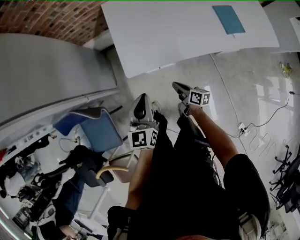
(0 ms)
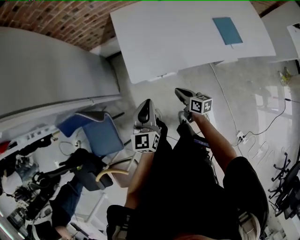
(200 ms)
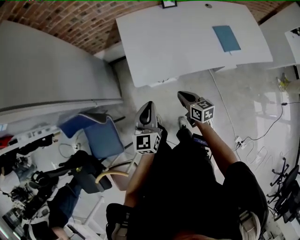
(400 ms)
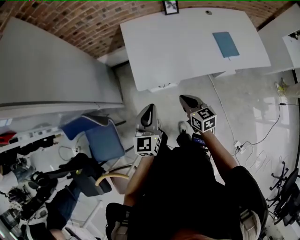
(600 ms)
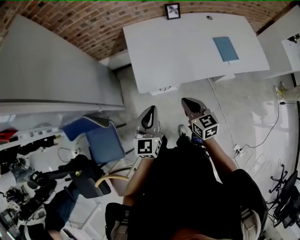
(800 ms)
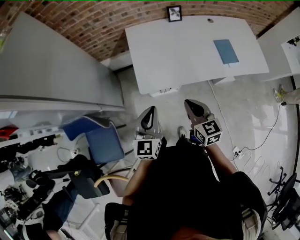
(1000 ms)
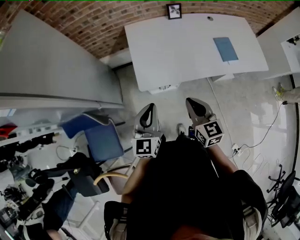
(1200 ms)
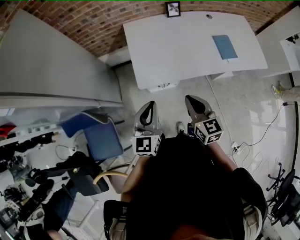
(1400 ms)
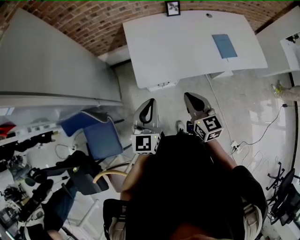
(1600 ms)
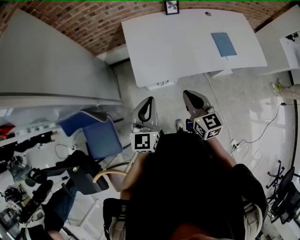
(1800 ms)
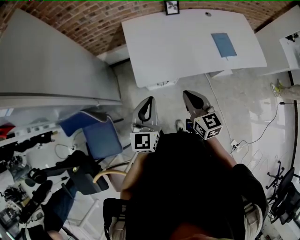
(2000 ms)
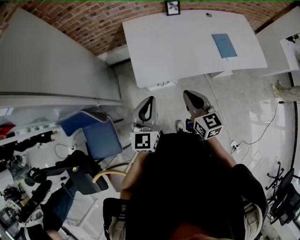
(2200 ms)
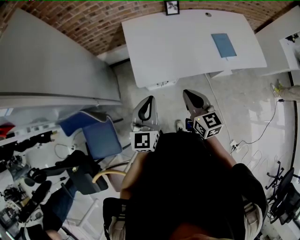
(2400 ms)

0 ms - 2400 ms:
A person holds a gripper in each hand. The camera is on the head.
0 ms - 1200 ms: The right gripper is displaced upward by approximately 30 cm, and twists about 50 degrees counterclockwise, seen from behind, while the left gripper goes approximately 10 cm upward.
1200 ms - 2400 ms: The grippers make only small movements.

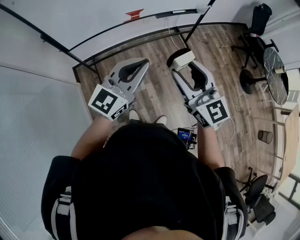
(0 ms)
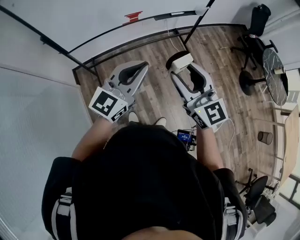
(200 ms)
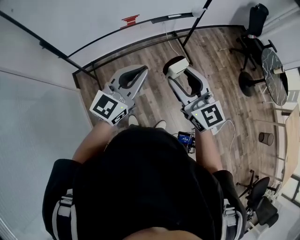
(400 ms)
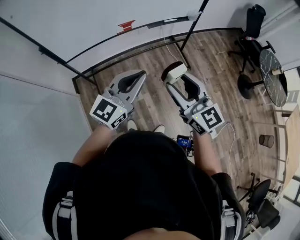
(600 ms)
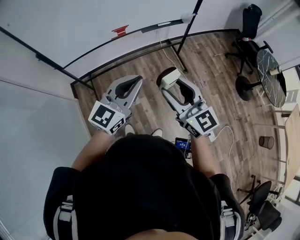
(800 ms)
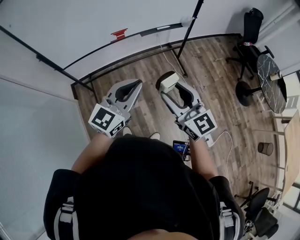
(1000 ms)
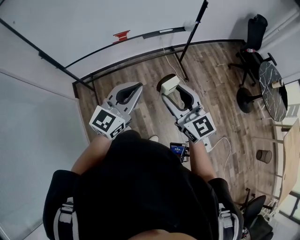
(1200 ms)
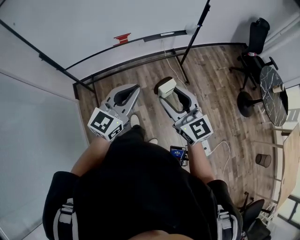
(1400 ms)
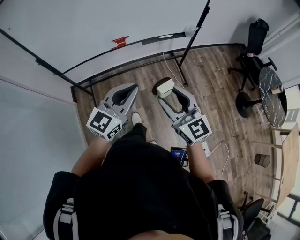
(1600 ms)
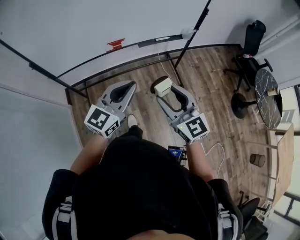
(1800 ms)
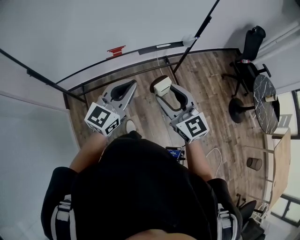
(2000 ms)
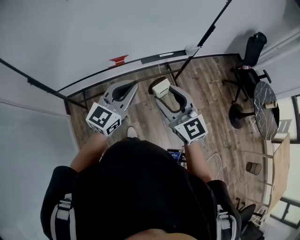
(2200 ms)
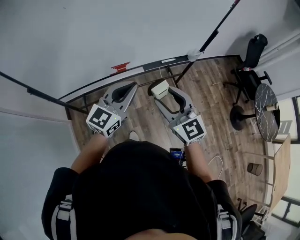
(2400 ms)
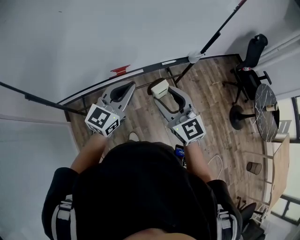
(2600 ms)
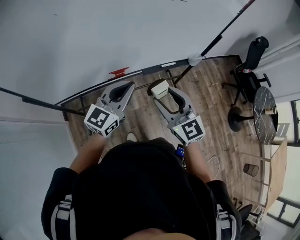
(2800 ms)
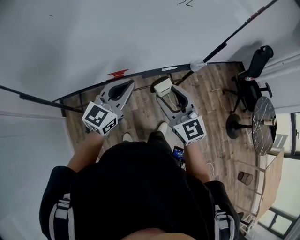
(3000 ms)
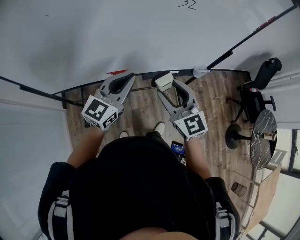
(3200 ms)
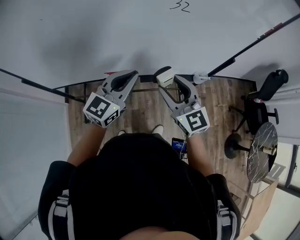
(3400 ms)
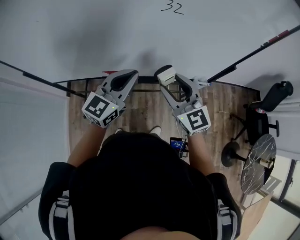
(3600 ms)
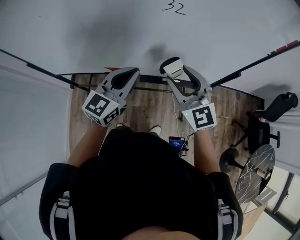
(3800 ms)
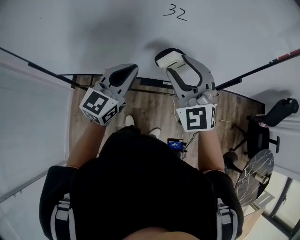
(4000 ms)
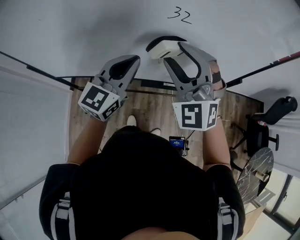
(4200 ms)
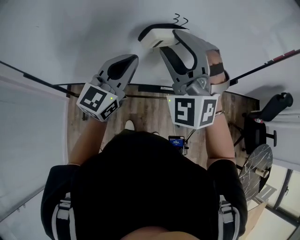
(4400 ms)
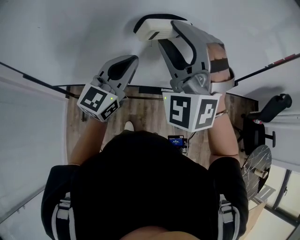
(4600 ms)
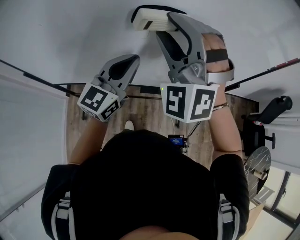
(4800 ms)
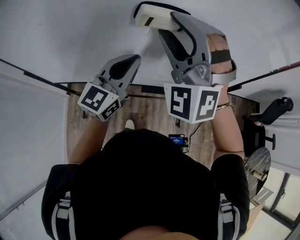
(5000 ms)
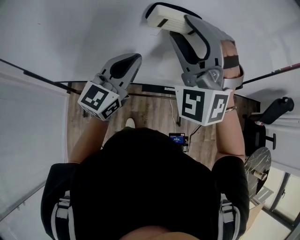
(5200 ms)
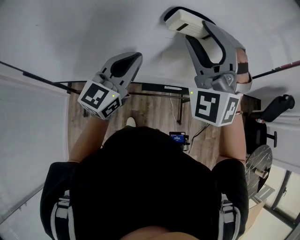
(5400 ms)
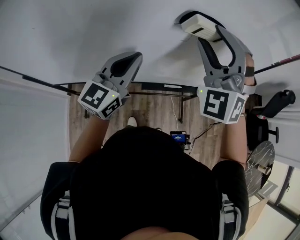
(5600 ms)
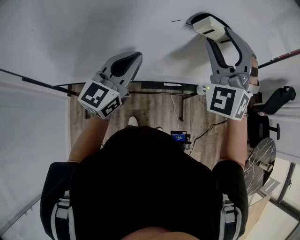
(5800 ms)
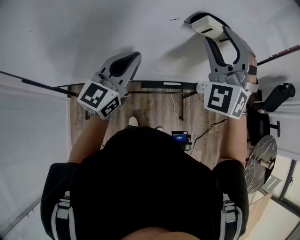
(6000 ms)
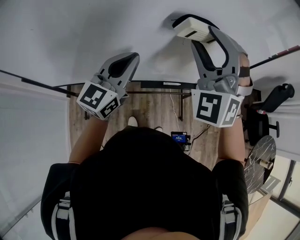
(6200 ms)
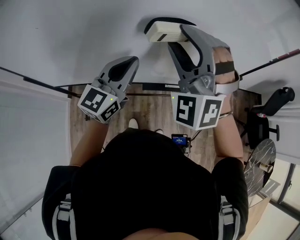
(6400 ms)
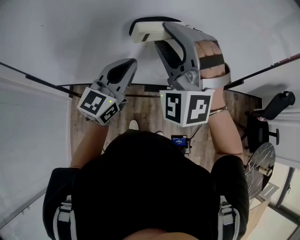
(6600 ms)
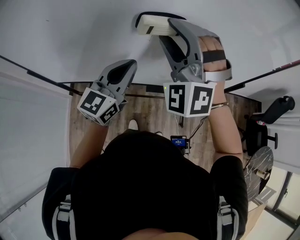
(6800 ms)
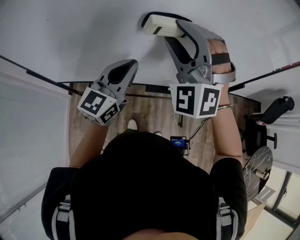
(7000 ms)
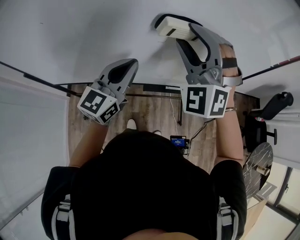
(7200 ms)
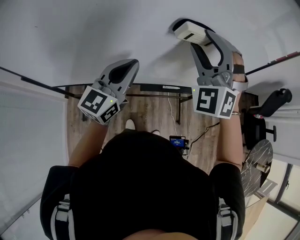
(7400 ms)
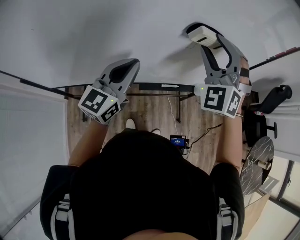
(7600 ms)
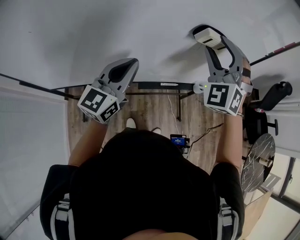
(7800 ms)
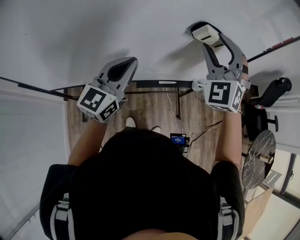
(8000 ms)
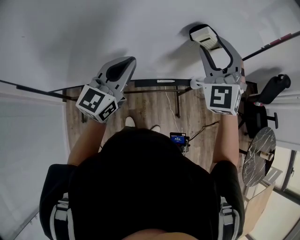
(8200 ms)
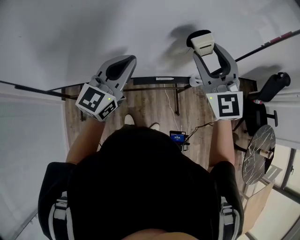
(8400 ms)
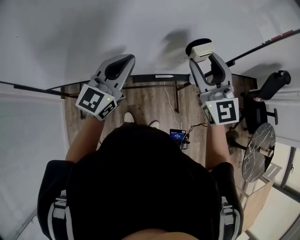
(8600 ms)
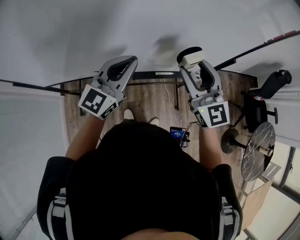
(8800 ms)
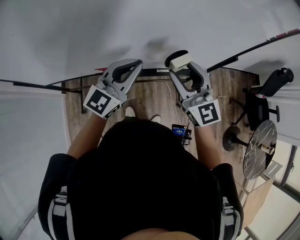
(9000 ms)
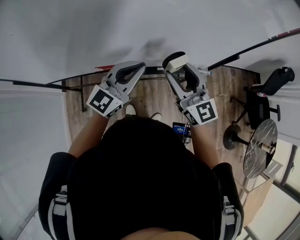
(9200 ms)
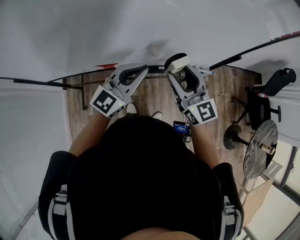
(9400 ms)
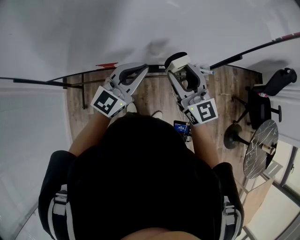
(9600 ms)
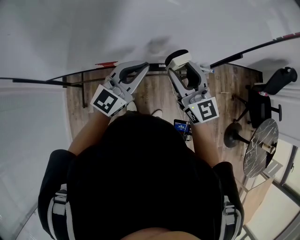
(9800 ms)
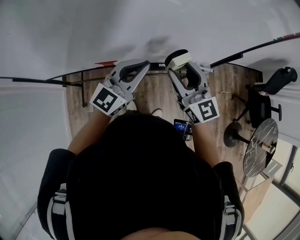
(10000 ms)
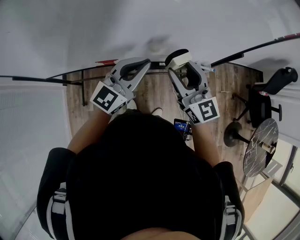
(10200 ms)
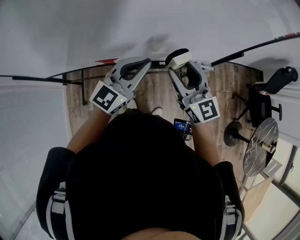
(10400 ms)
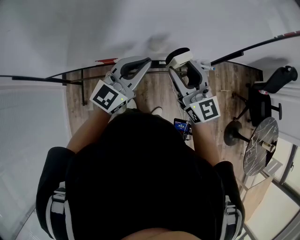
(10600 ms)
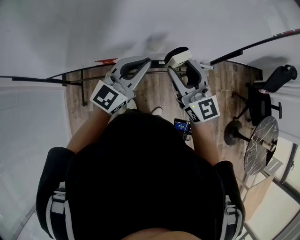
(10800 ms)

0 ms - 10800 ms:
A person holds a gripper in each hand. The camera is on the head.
0 ms - 1600 ms: The two grippers go roughly 10 cm to the right.
1600 ms - 3000 ms: Both grippers travel together forward, some 35 cm.
3000 ms - 4600 ms: The left gripper goes about 20 cm forward, to the right and upward, and rotates approximately 20 degrees. Meanwhile the right gripper shifts approximately 30 cm upward and forward, and rotates around the line of its fingers by some 60 degrees, counterclockwise from behind.
4600 ms - 6200 ms: The right gripper moves to the right, about 10 cm.
6200 ms - 7800 ms: The right gripper moves to the right, downward and forward, roughly 10 cm.
7800 ms - 9200 ms: The right gripper goes some 20 cm downward and backward, and twists roughly 60 degrees clockwise, seen from behind; the left gripper goes some 10 cm downward and to the right.
9200 ms - 10800 ms: The grippers move only a little.

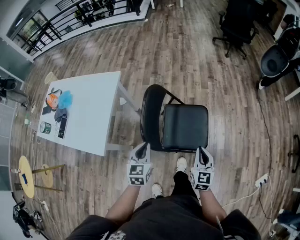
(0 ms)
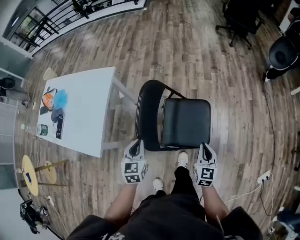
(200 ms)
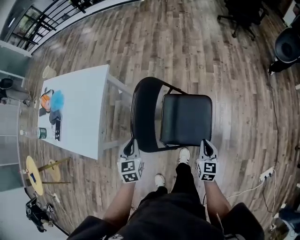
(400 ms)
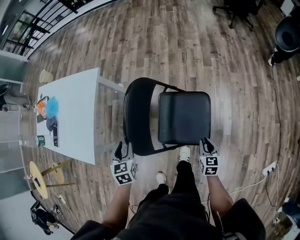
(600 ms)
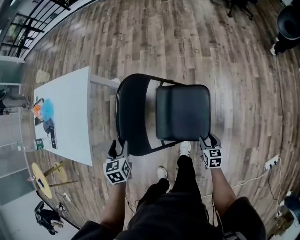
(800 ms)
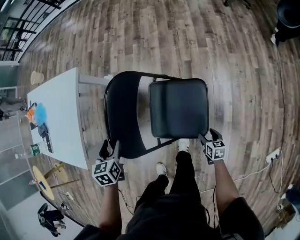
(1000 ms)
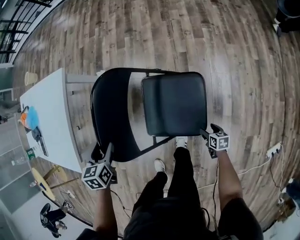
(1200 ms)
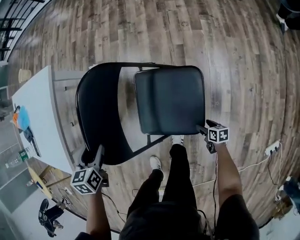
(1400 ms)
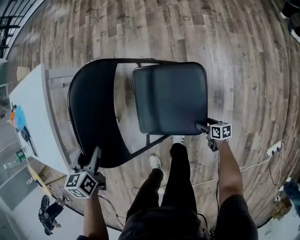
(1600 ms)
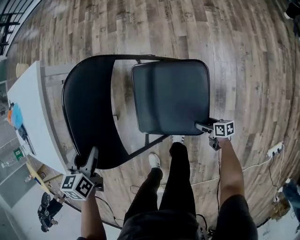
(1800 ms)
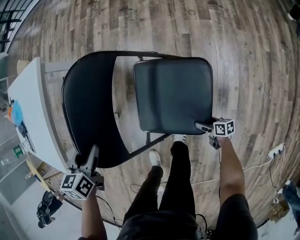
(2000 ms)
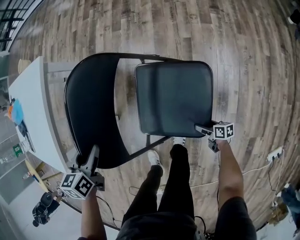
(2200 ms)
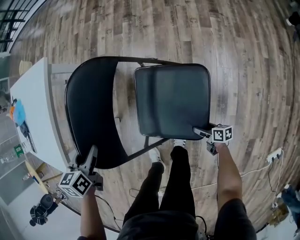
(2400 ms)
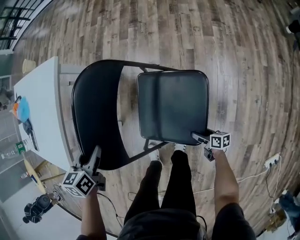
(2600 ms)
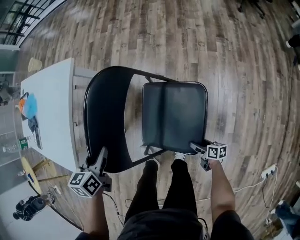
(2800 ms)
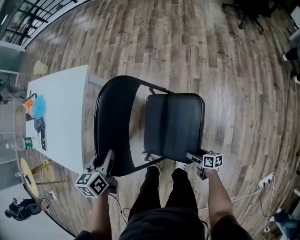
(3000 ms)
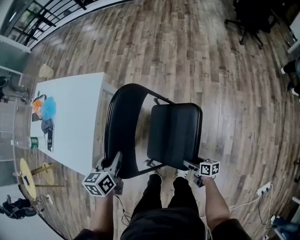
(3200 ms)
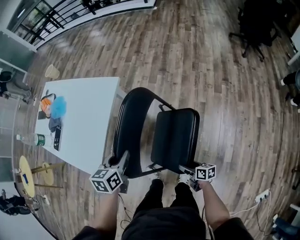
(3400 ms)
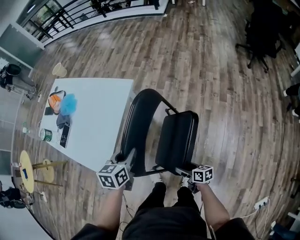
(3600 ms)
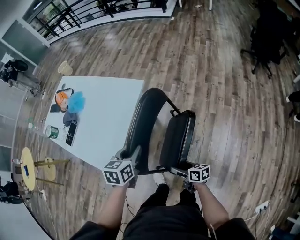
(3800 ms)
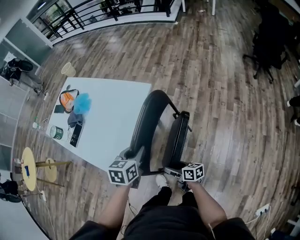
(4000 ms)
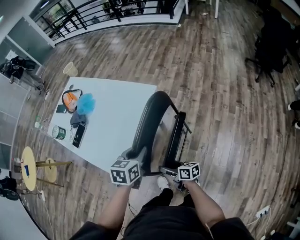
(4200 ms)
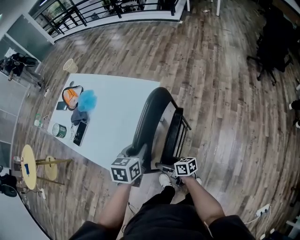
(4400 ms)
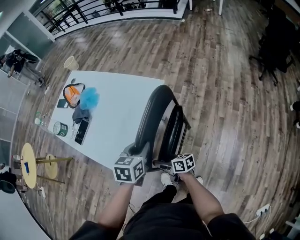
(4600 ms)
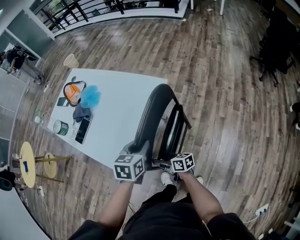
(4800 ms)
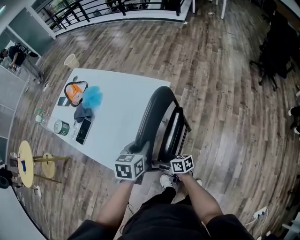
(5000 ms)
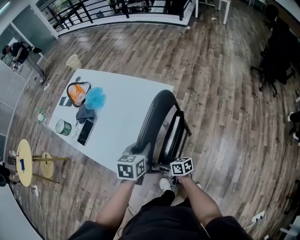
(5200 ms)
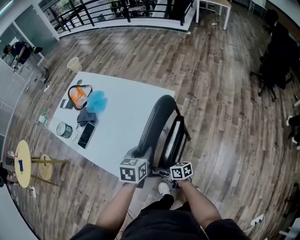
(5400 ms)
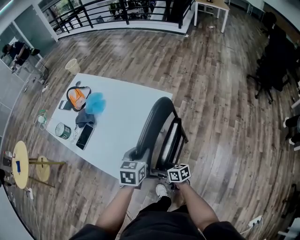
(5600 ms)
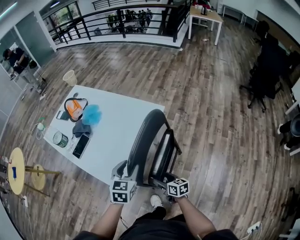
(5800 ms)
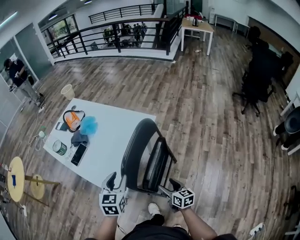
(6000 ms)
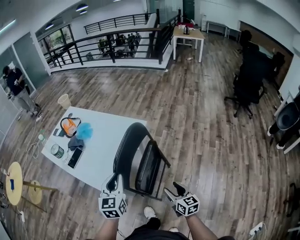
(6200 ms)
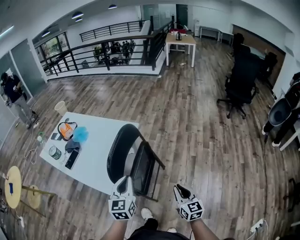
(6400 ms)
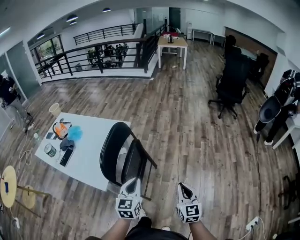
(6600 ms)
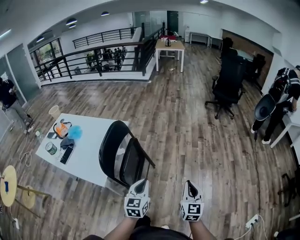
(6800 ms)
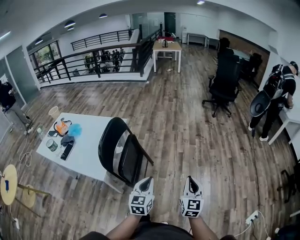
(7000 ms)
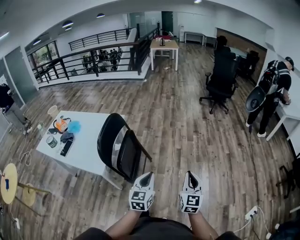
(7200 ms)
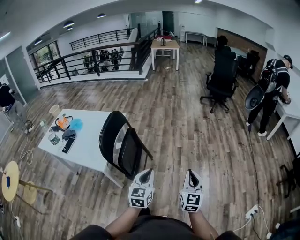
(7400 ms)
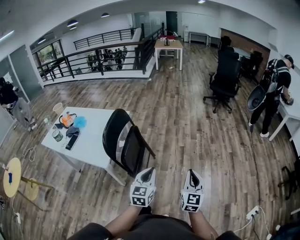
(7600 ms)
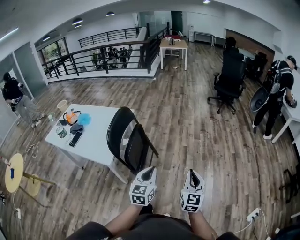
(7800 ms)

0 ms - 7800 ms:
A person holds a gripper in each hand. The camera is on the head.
0 ms - 1600 ms: The right gripper moves downward, some 50 cm, turns by about 70 degrees, and opens its fingers. The left gripper is displaced downward by some 20 cm, turns by about 30 degrees, and opens.
1600 ms - 3200 ms: The left gripper goes about 15 cm upward and to the left, and closes; the right gripper moves upward, to the left and forward, about 30 cm.
3200 ms - 4600 ms: The left gripper heads to the left, forward and upward, covering roughly 20 cm. Meanwhile the right gripper travels to the left, forward and upward by about 50 cm, and changes its angle by about 30 degrees.
4600 ms - 6200 ms: The left gripper shifts some 15 cm upward, backward and to the left, turns by roughly 30 degrees, and opens, then closes once more. The right gripper moves upward, backward and to the right, roughly 25 cm, and rotates some 40 degrees.
6200 ms - 7800 ms: The right gripper ends up roughly 35 cm from where it was, changes its angle by approximately 50 degrees, and closes. Meanwhile the left gripper changes place by approximately 35 cm, and swivels roughly 30 degrees.

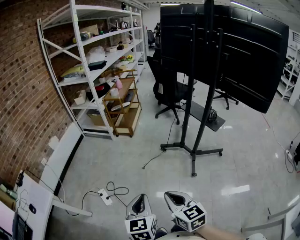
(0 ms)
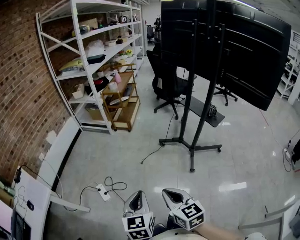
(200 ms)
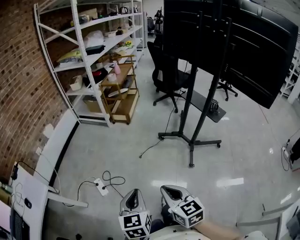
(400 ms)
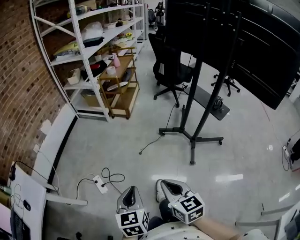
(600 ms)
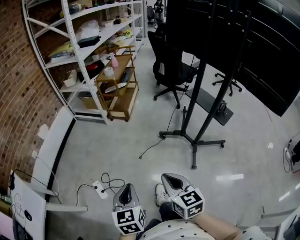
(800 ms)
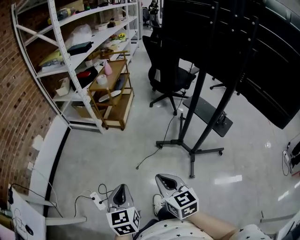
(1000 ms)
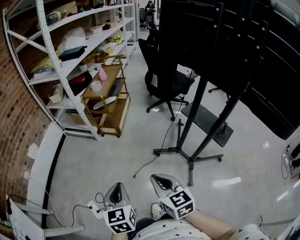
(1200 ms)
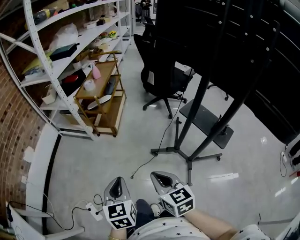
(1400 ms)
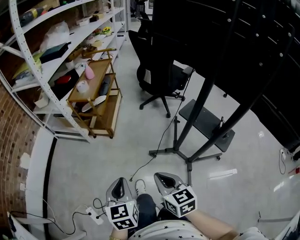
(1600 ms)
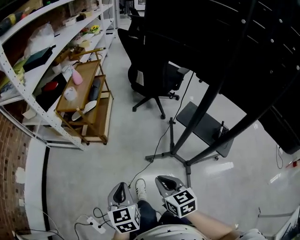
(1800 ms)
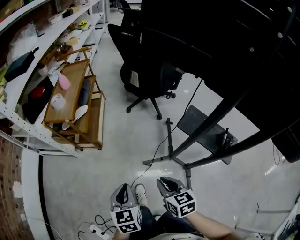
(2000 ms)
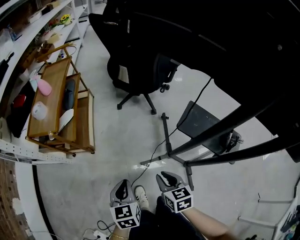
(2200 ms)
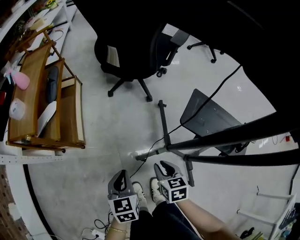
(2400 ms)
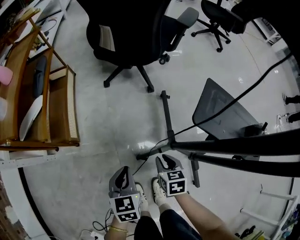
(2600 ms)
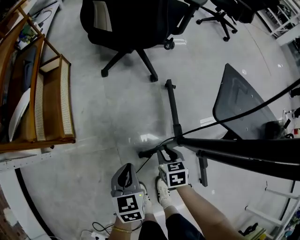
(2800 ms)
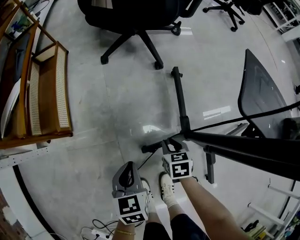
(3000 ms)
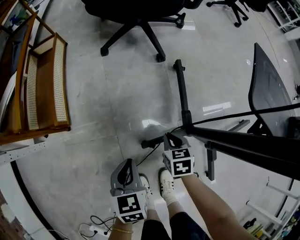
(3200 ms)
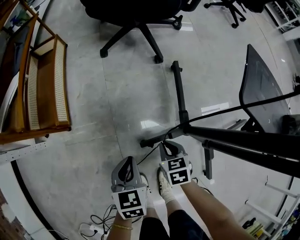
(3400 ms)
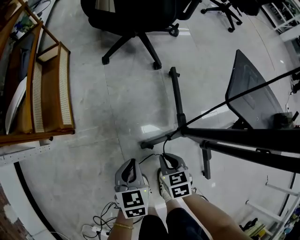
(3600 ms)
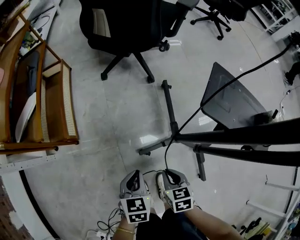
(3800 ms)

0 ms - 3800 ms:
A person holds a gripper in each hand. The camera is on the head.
0 ms - 1200 ms: The two grippers go roughly 35 cm forward.
1200 ms - 2600 ms: The two grippers travel together, approximately 50 cm. The right gripper tilts its fingers about 30 degrees downward, and opens up. Meanwhile the left gripper swivels approximately 30 degrees.
2600 ms - 3800 ms: The left gripper goes some 5 cm downward; the right gripper shifts roughly 10 cm backward, and moves about 20 cm downward and comes back.
